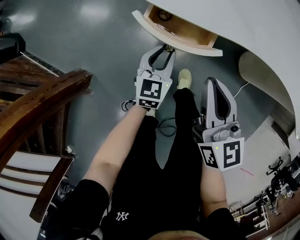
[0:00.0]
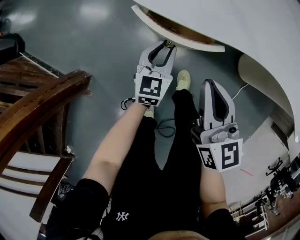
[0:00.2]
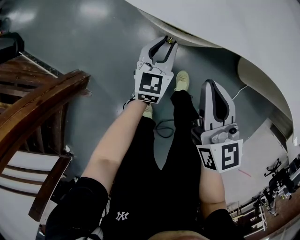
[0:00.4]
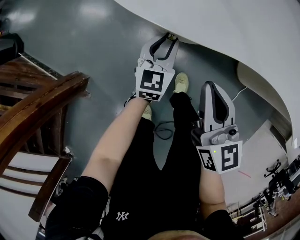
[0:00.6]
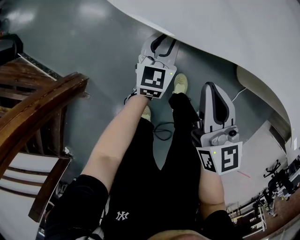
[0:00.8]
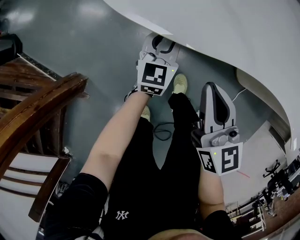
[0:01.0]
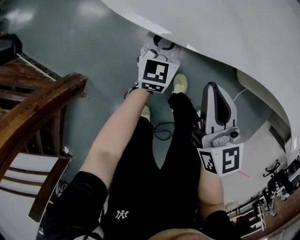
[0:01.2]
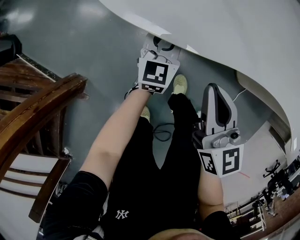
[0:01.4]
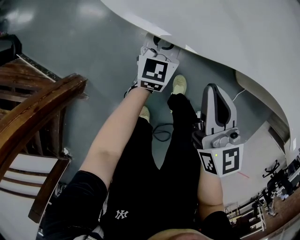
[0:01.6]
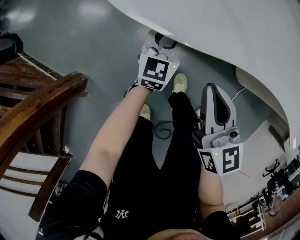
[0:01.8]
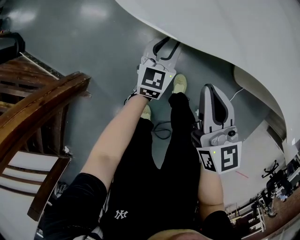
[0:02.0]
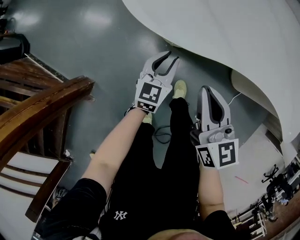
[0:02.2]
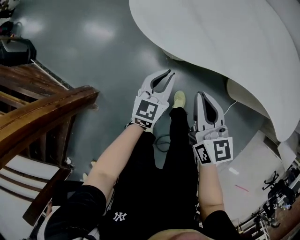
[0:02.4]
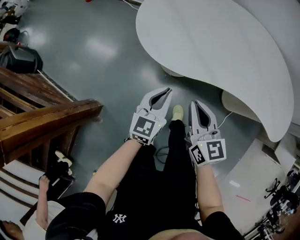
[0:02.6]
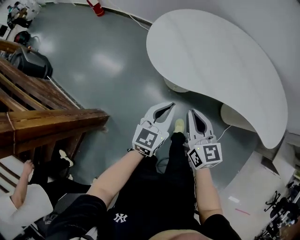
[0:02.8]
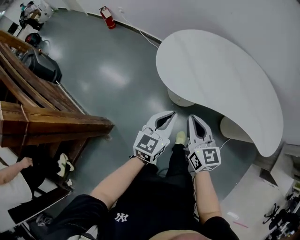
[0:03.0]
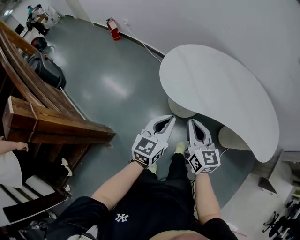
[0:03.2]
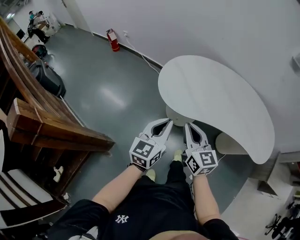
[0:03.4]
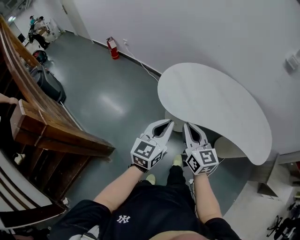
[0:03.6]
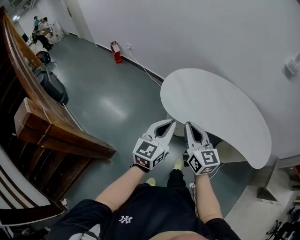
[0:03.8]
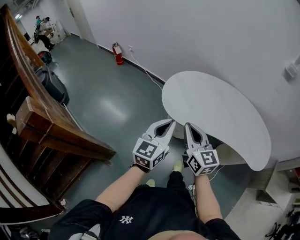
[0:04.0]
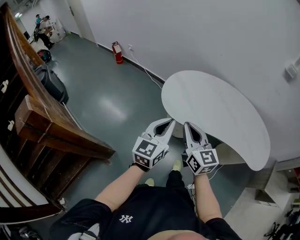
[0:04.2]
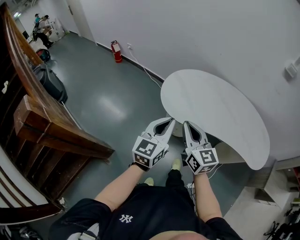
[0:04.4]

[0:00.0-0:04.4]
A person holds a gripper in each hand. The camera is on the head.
0:00.0 to 0:01.4: The right gripper changes place by roughly 5 cm; the left gripper goes approximately 10 cm forward.
0:01.4 to 0:03.0: The right gripper heads upward, covering approximately 25 cm. The left gripper is displaced upward and backward by about 40 cm, and closes its fingers.
0:03.0 to 0:04.4: The grippers both shift upward by approximately 15 cm.

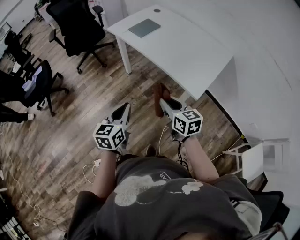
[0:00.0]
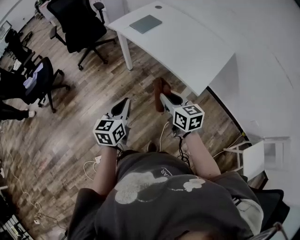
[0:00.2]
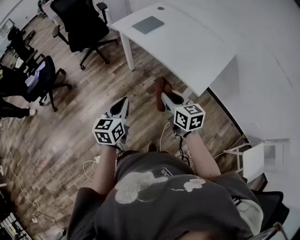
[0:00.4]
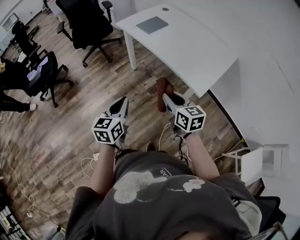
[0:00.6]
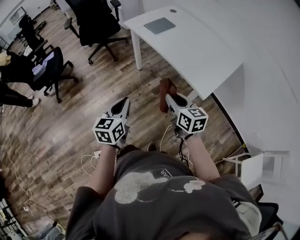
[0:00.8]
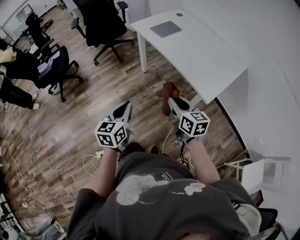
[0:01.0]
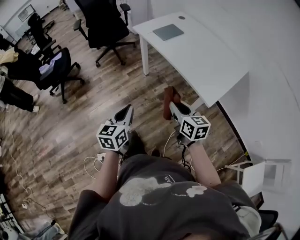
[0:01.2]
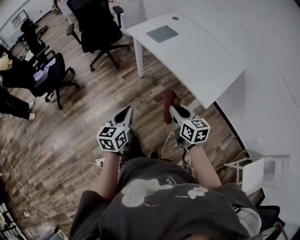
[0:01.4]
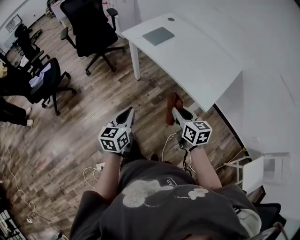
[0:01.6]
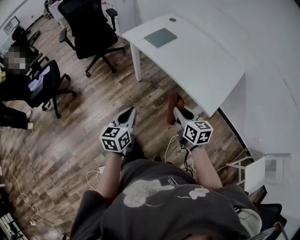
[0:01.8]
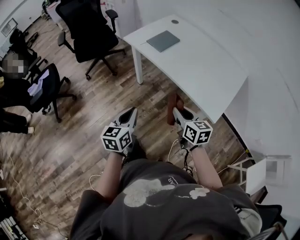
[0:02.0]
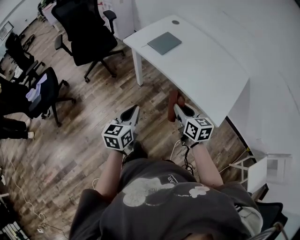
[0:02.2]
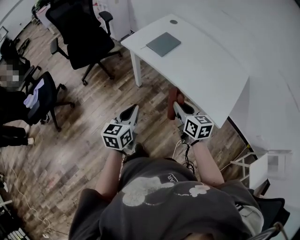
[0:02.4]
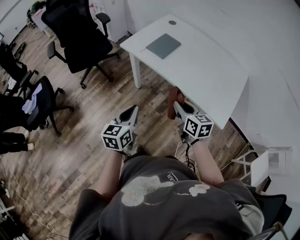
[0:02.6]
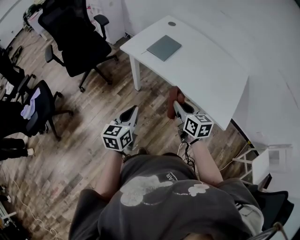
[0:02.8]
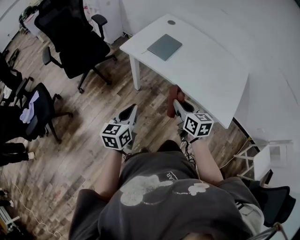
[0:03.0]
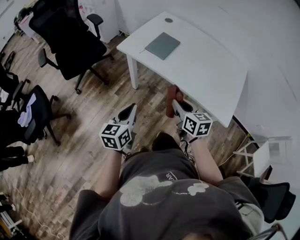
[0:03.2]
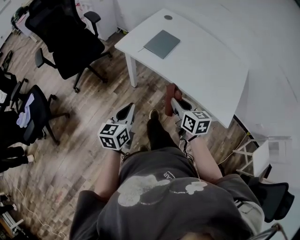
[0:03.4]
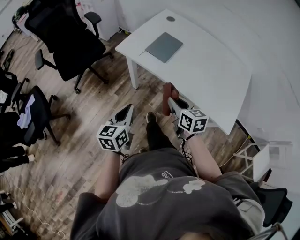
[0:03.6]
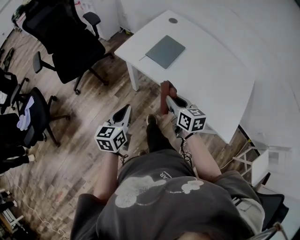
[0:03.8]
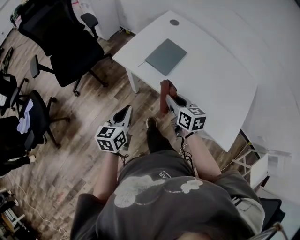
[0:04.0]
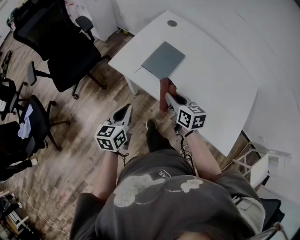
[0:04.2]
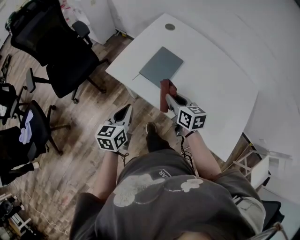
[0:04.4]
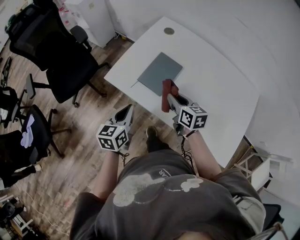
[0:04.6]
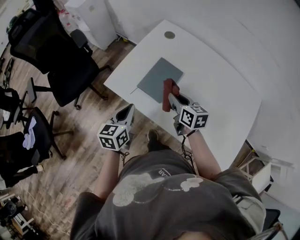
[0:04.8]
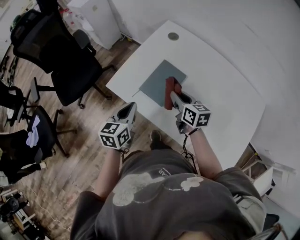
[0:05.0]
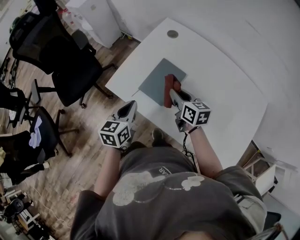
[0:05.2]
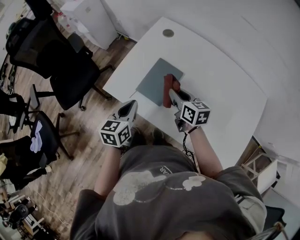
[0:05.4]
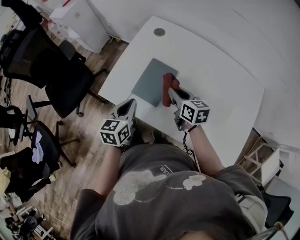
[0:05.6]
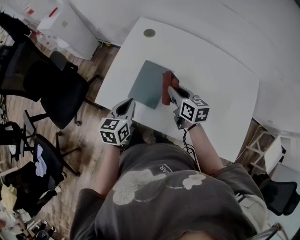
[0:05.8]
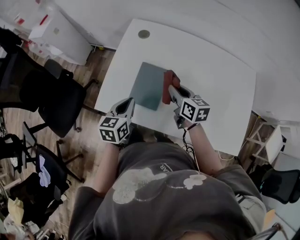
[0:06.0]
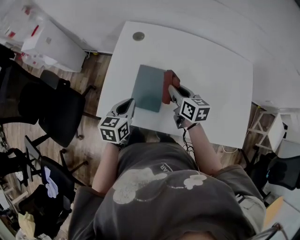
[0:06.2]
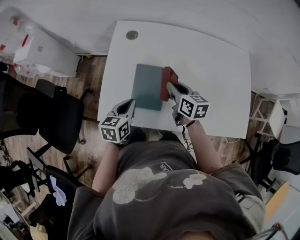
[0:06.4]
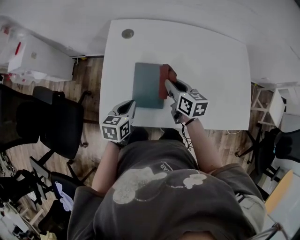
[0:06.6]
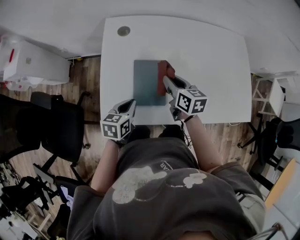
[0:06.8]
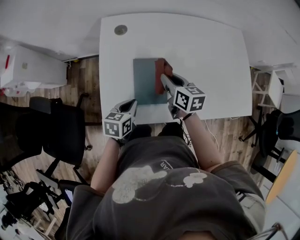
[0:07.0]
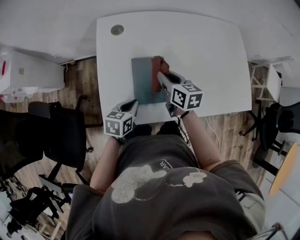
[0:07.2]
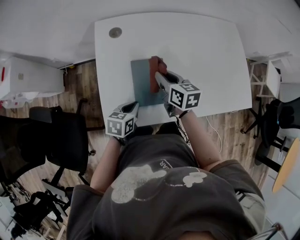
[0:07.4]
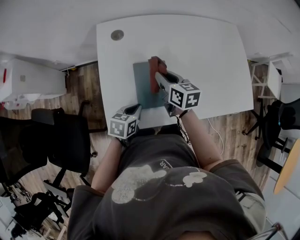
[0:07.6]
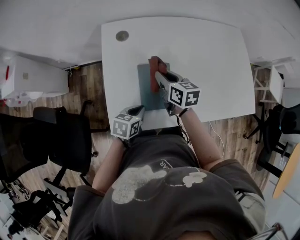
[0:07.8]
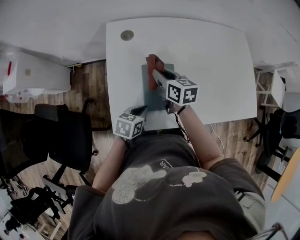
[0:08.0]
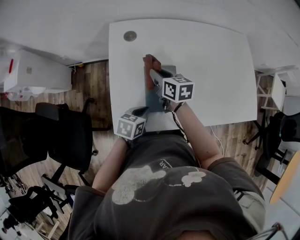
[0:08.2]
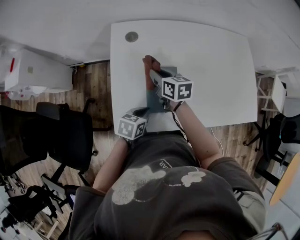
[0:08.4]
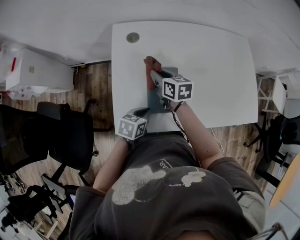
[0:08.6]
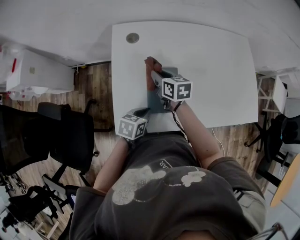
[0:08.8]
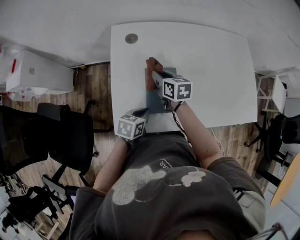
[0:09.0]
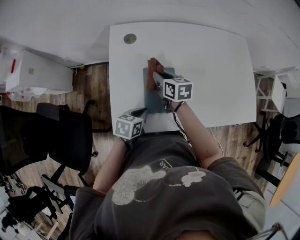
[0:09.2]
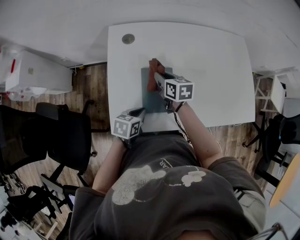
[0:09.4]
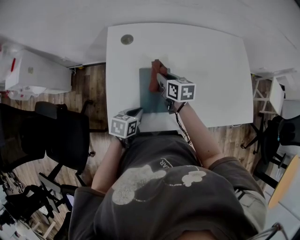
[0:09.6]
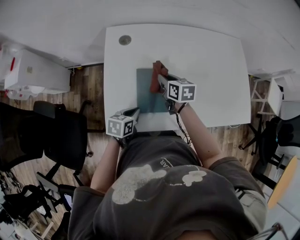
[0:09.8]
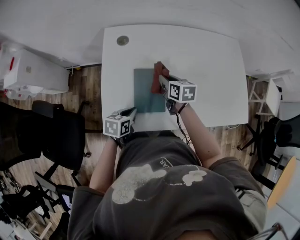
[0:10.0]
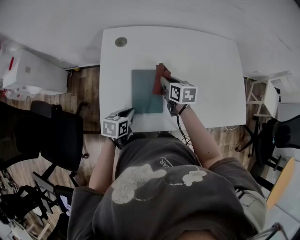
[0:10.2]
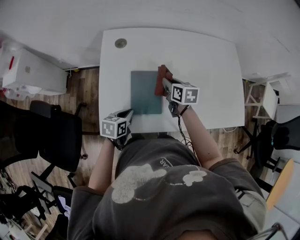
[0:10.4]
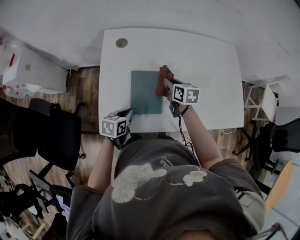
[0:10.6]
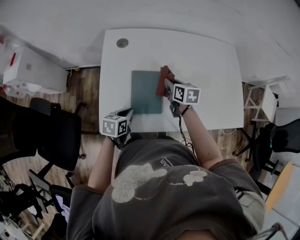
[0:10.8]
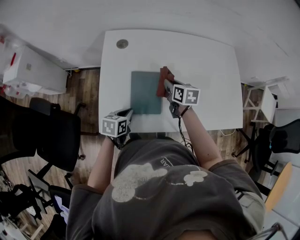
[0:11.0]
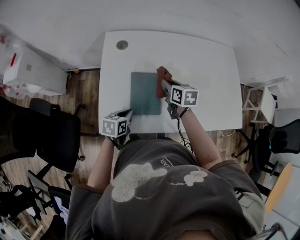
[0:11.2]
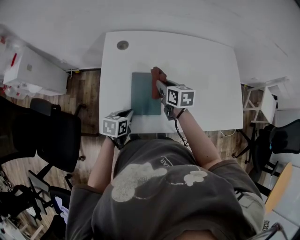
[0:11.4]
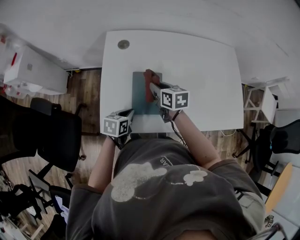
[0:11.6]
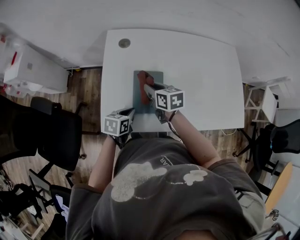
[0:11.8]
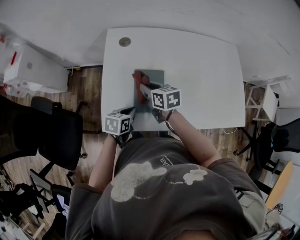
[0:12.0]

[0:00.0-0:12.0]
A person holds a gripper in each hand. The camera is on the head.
0:00.0 to 0:01.6: The left gripper heads to the left, covering about 5 cm.
0:01.6 to 0:03.0: The two grippers go about 30 cm forward and to the left.
0:03.0 to 0:04.4: Both grippers move forward, approximately 30 cm.
0:04.4 to 0:06.0: The right gripper moves forward and to the right, some 15 cm, and turns by about 20 degrees; the left gripper moves forward, some 20 cm, and changes its angle by roughly 20 degrees.
0:06.0 to 0:07.6: The left gripper goes some 10 cm downward, and turns by approximately 40 degrees; the right gripper changes place by some 10 cm, and swivels about 20 degrees.
0:07.6 to 0:09.0: The right gripper goes roughly 5 cm to the left.
0:09.0 to 0:10.4: The right gripper heads to the right, covering about 15 cm.
0:10.4 to 0:12.0: The right gripper moves to the left and backward, approximately 15 cm.

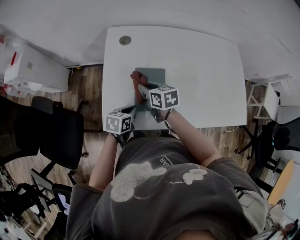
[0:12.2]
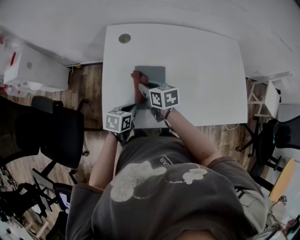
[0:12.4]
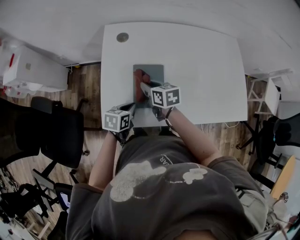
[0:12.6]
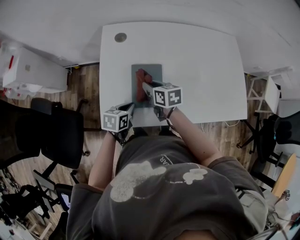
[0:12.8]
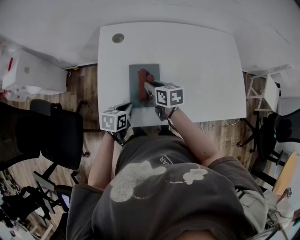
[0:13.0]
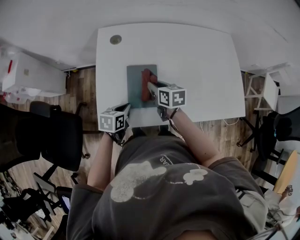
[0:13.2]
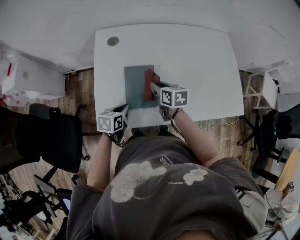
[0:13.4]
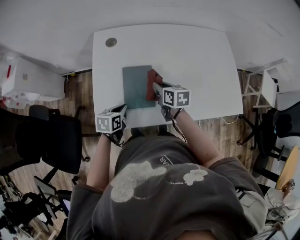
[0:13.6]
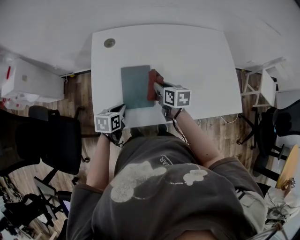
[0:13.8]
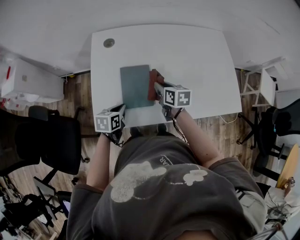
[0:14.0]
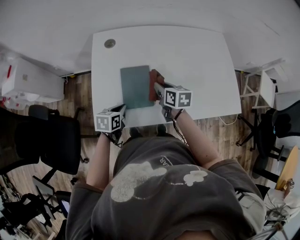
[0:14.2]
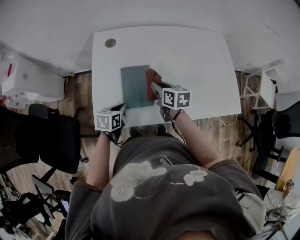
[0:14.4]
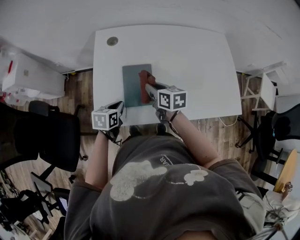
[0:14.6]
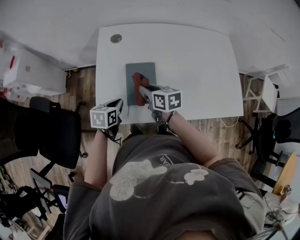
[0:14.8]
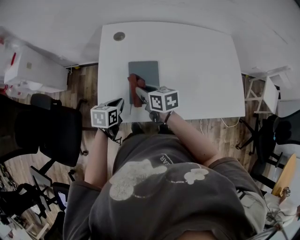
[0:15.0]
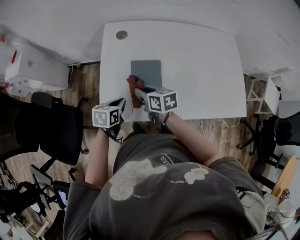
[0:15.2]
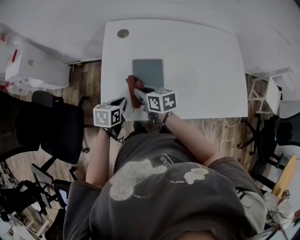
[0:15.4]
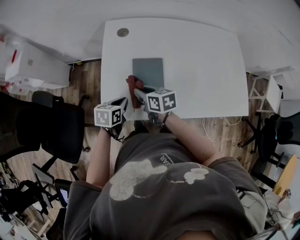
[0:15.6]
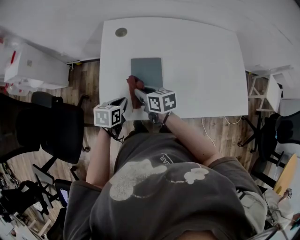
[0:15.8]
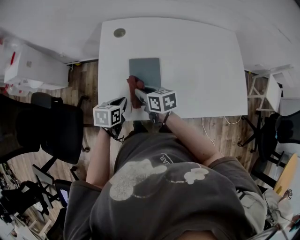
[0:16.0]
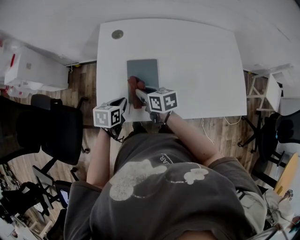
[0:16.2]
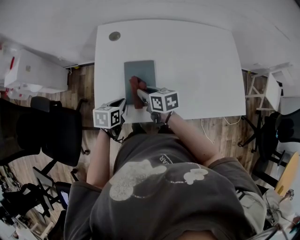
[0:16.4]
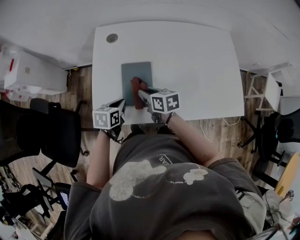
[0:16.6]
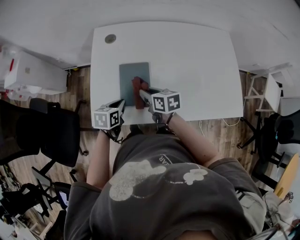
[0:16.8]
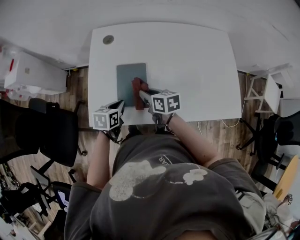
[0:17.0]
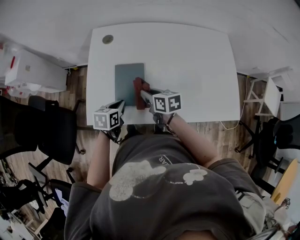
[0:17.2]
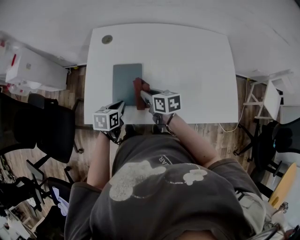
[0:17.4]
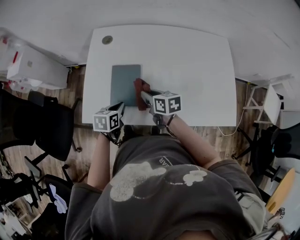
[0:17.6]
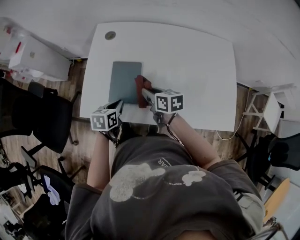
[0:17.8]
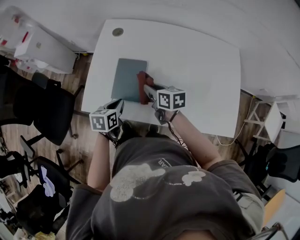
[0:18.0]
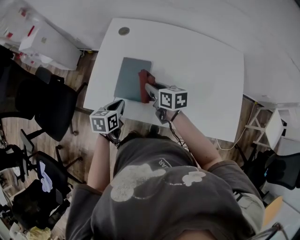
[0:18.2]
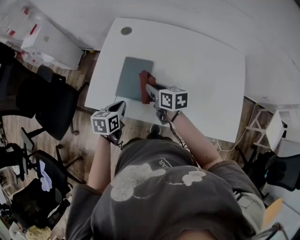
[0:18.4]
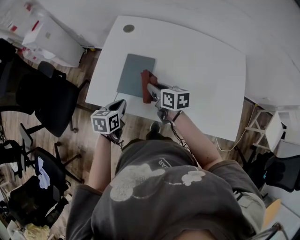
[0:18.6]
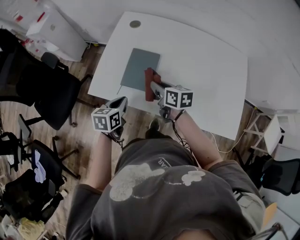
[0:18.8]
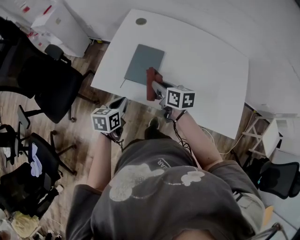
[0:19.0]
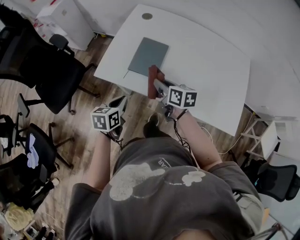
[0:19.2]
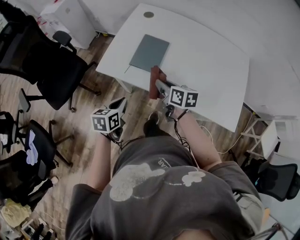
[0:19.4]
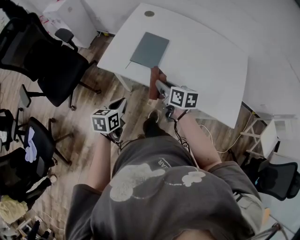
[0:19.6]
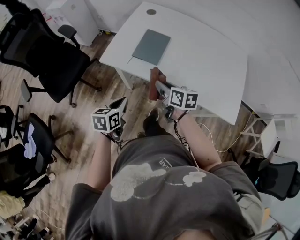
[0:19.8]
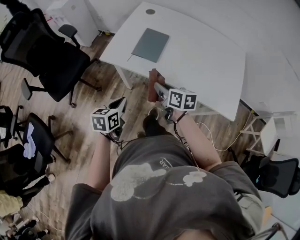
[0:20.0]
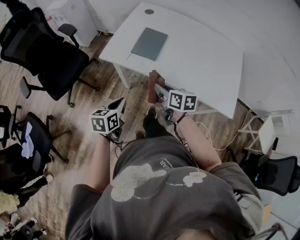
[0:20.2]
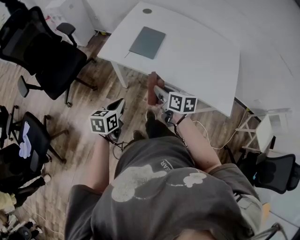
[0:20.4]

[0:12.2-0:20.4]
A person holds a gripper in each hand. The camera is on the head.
0:12.2 to 0:13.8: The right gripper travels to the right by about 15 cm.
0:13.8 to 0:15.4: The right gripper travels to the left by some 15 cm.
0:15.4 to 0:17.2: The two grippers go approximately 10 cm to the right.
0:17.2 to 0:18.8: The left gripper travels backward by roughly 10 cm, and turns by approximately 20 degrees.
0:18.8 to 0:20.4: The two grippers go roughly 25 cm backward.
